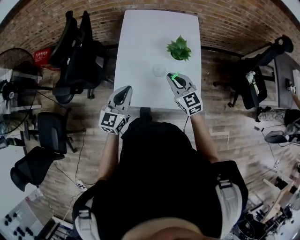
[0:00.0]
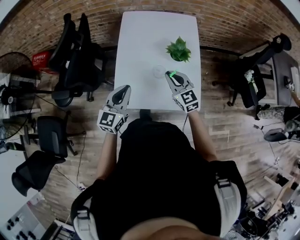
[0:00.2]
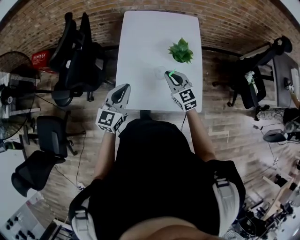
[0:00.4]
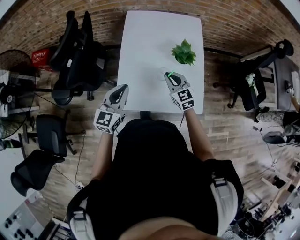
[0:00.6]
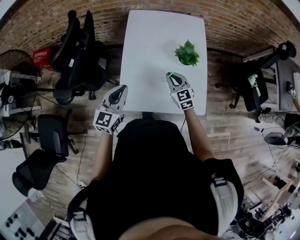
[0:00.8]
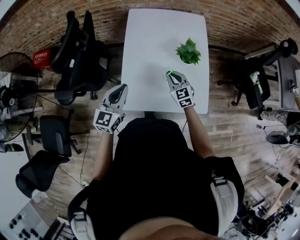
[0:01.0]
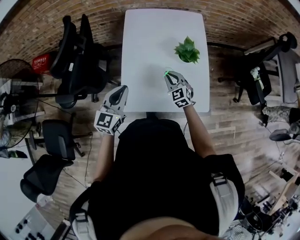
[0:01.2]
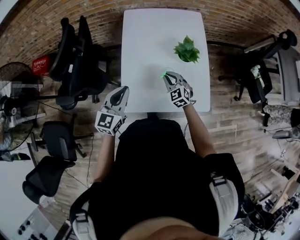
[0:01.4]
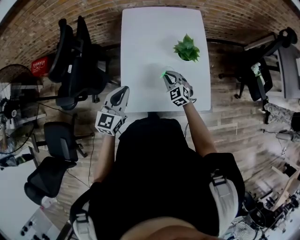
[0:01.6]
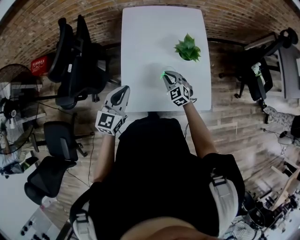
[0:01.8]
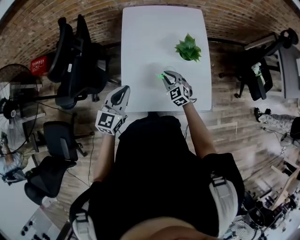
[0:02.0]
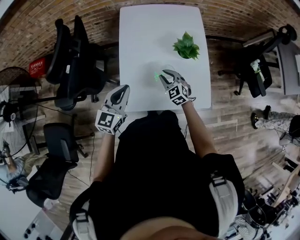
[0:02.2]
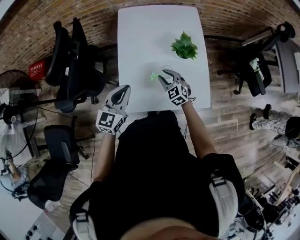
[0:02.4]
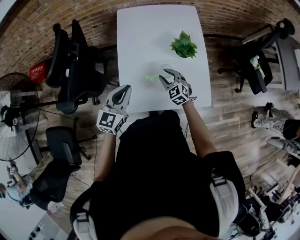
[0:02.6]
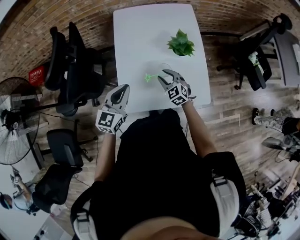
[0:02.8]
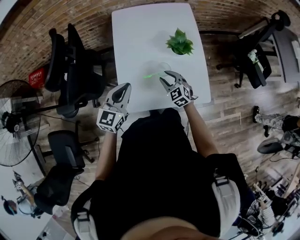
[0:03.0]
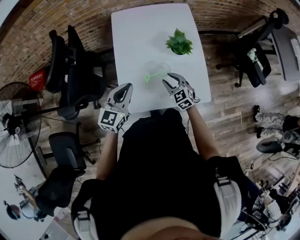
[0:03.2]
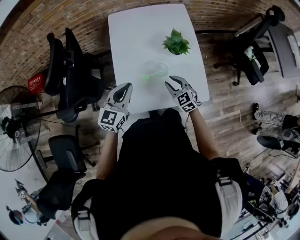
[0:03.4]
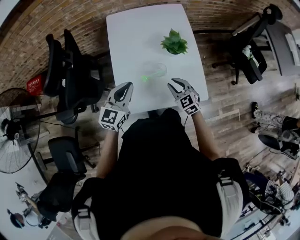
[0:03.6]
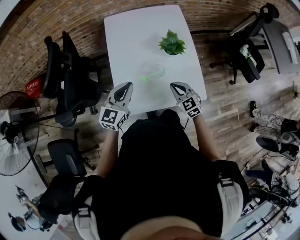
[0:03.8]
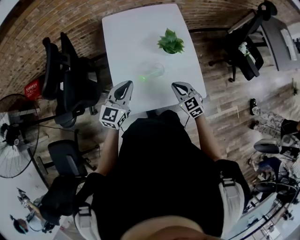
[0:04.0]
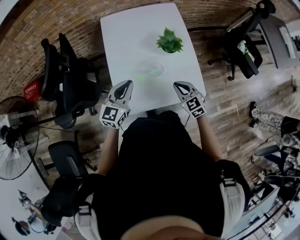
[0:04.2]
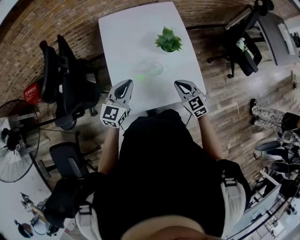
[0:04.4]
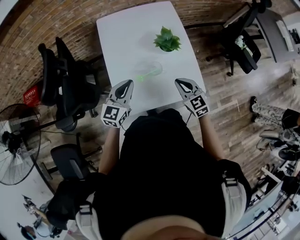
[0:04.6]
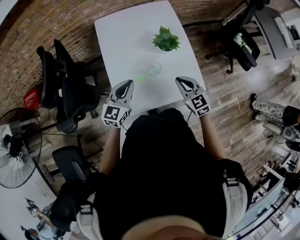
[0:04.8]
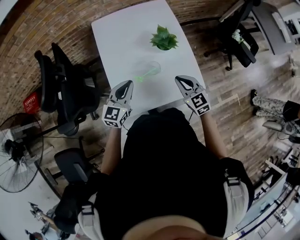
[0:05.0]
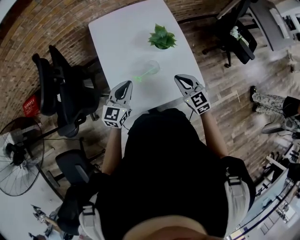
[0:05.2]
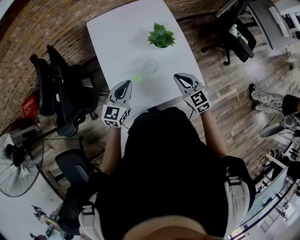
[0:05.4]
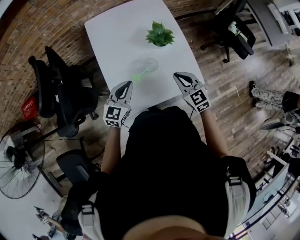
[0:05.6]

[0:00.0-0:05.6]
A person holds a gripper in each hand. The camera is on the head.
0:00.0 to 0:01.4: The left gripper shifts roughly 10 cm to the left and forward; the right gripper shifts approximately 15 cm downward, forward and to the left.
0:01.4 to 0:02.8: The right gripper opens.
0:02.8 to 0:04.2: The right gripper is displaced to the right, backward and upward by about 15 cm, and closes up.
0:04.2 to 0:05.6: The left gripper ends up approximately 5 cm from where it was.

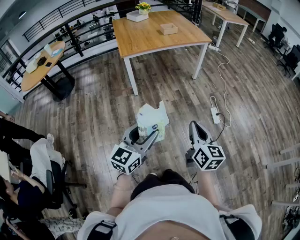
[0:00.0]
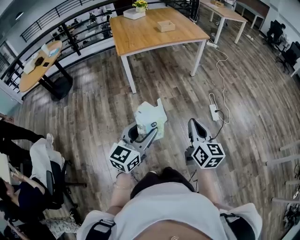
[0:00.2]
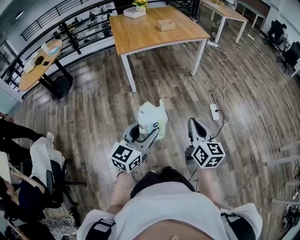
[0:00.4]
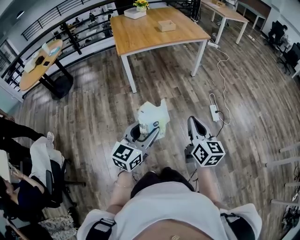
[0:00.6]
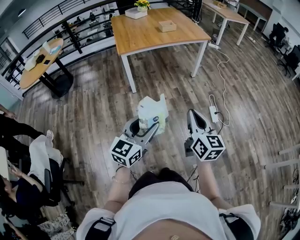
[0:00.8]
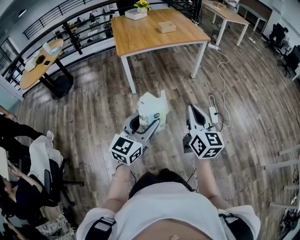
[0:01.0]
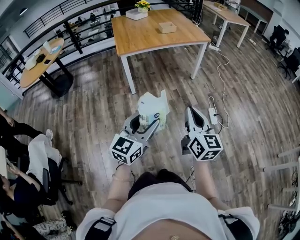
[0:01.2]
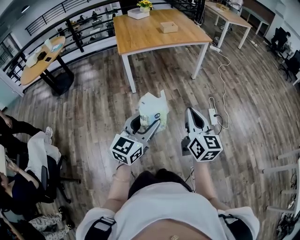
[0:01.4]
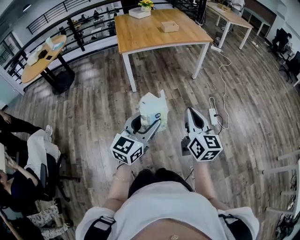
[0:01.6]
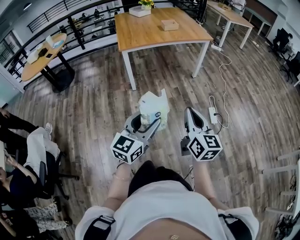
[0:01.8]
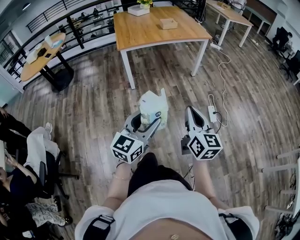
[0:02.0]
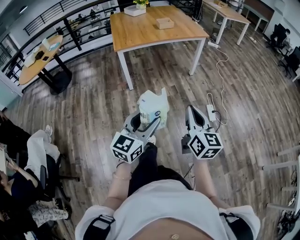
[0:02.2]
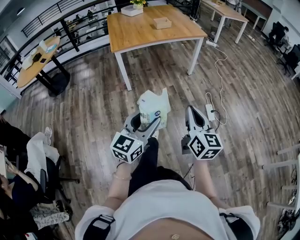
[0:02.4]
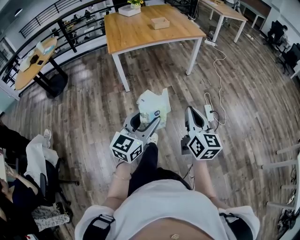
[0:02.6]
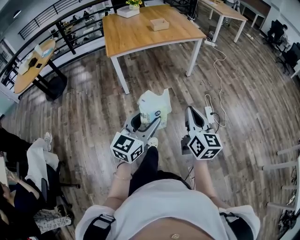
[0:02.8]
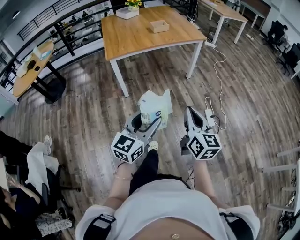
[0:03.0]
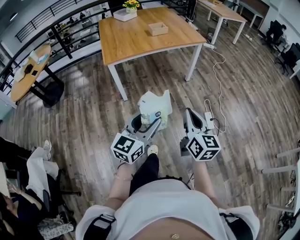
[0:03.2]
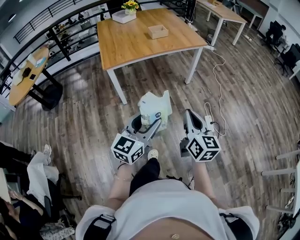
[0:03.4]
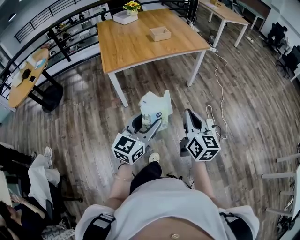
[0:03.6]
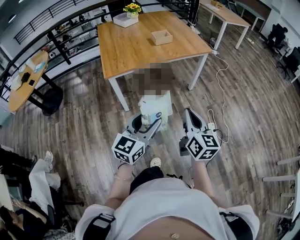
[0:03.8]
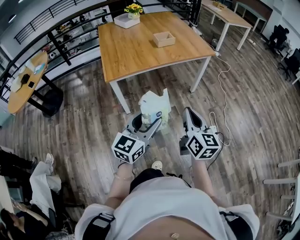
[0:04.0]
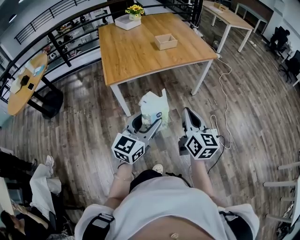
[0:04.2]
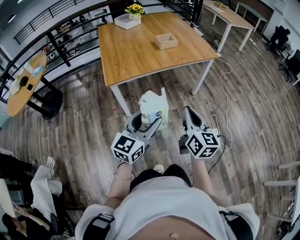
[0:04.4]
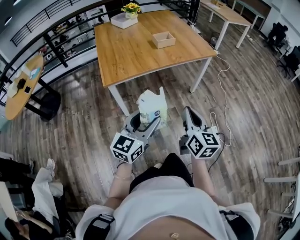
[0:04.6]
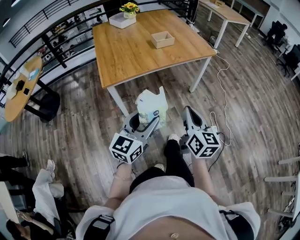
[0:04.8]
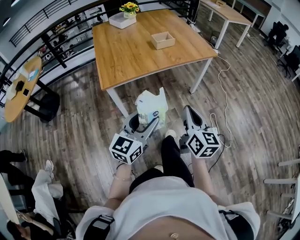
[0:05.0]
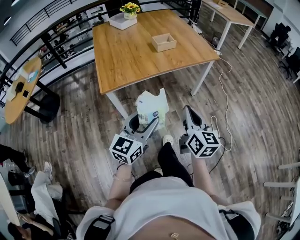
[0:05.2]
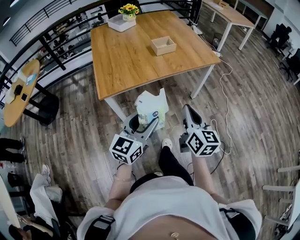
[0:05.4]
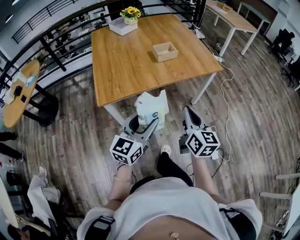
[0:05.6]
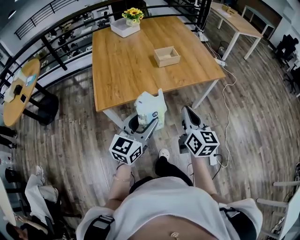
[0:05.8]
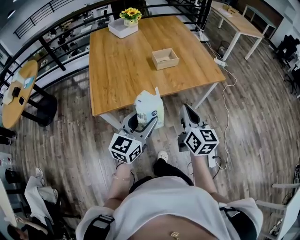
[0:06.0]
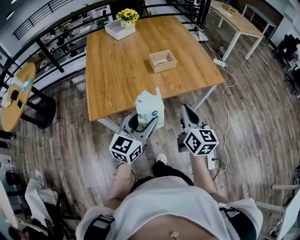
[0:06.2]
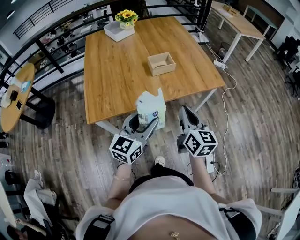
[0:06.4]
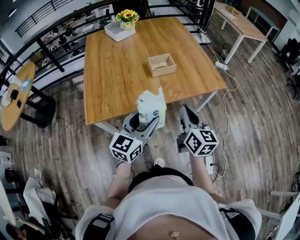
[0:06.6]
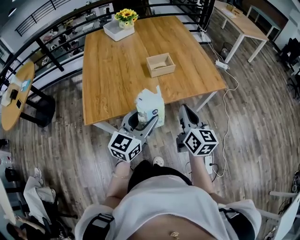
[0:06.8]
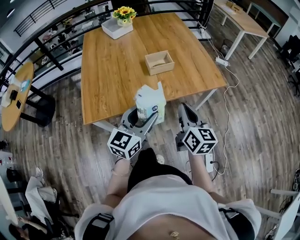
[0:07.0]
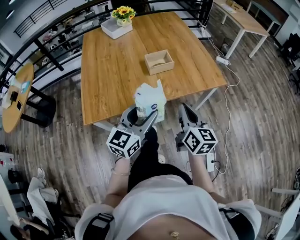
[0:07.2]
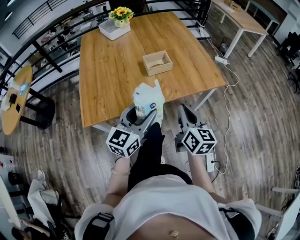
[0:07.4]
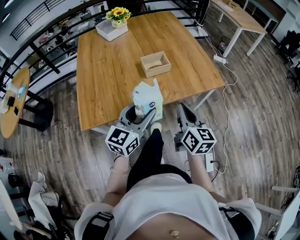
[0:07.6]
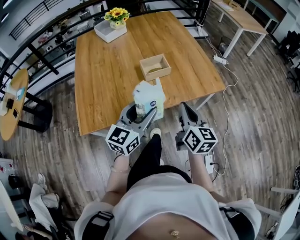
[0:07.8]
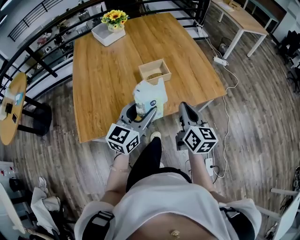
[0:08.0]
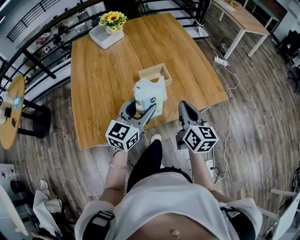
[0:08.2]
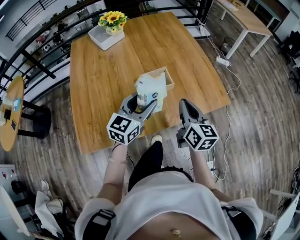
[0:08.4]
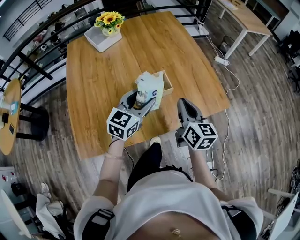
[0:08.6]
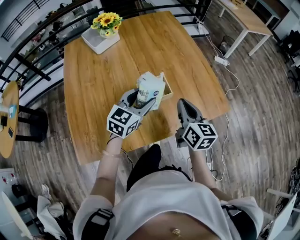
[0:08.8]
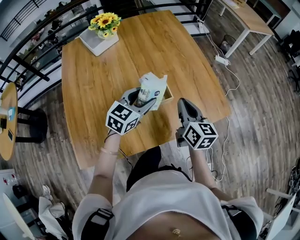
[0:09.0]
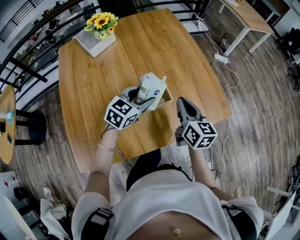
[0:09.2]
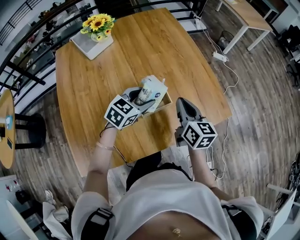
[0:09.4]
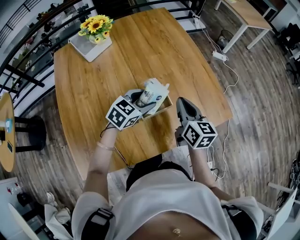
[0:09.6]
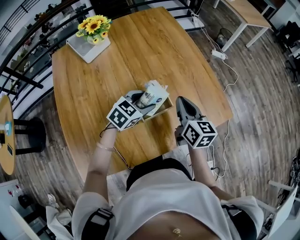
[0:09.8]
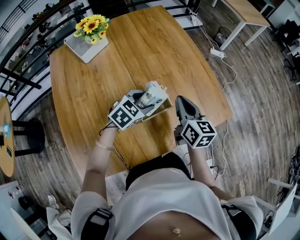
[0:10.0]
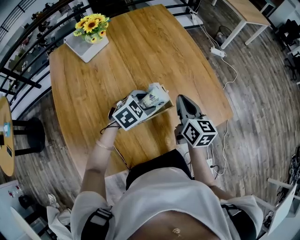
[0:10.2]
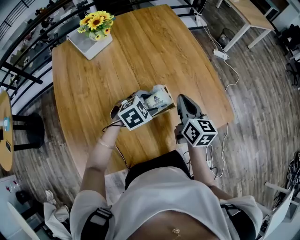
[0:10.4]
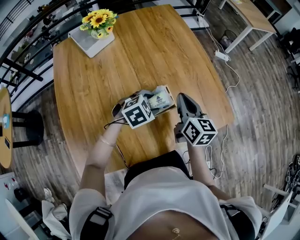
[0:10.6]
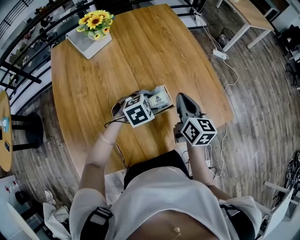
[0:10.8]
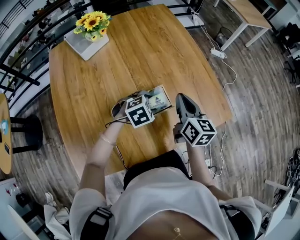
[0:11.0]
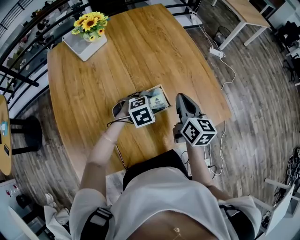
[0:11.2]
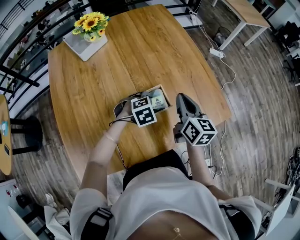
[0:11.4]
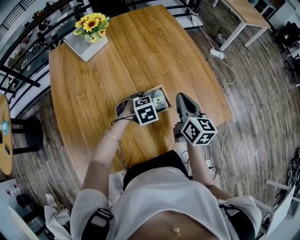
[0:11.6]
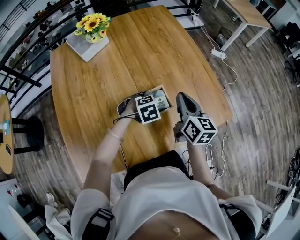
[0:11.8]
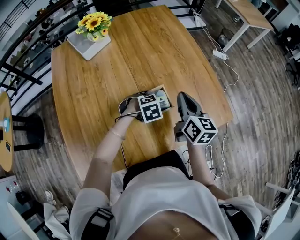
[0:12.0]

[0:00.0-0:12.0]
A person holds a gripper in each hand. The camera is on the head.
0:00.0 to 0:01.6: The right gripper changes place by roughly 5 cm; the left gripper ends up about 5 cm from where it was.
0:01.6 to 0:03.0: The grippers both shift forward by approximately 10 cm.
0:03.0 to 0:04.4: Both grippers travel together forward and to the left, about 25 cm.
0:04.4 to 0:06.0: The two grippers go some 25 cm forward.
0:06.0 to 0:07.6: Both grippers move forward, roughly 15 cm.
0:07.6 to 0:09.0: The two grippers go roughly 25 cm forward. The left gripper turns by approximately 20 degrees.
0:09.0 to 0:10.4: The left gripper moves downward, roughly 10 cm, and tips its fingers downward by roughly 30 degrees. The right gripper shifts approximately 5 cm forward.
0:10.4 to 0:12.0: The left gripper is displaced downward by some 10 cm, and turns by approximately 20 degrees.

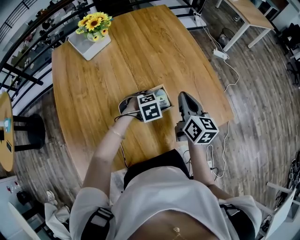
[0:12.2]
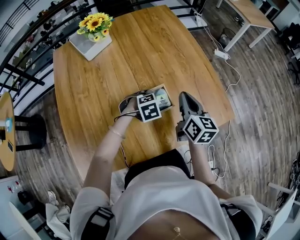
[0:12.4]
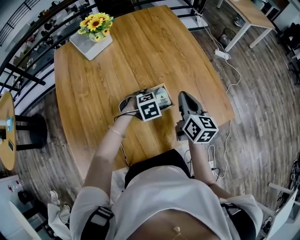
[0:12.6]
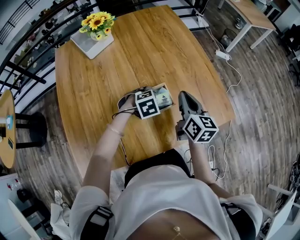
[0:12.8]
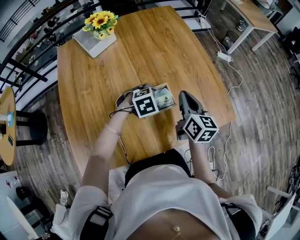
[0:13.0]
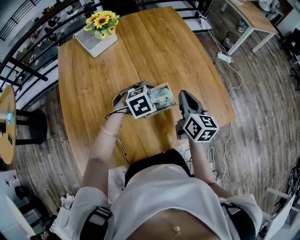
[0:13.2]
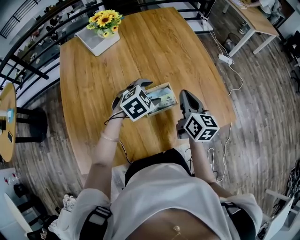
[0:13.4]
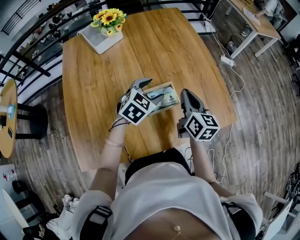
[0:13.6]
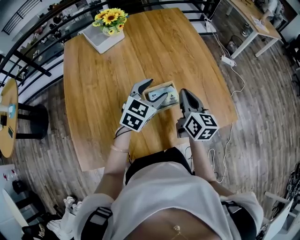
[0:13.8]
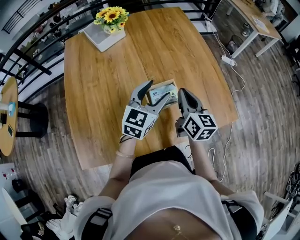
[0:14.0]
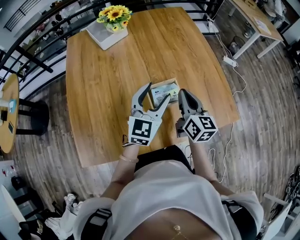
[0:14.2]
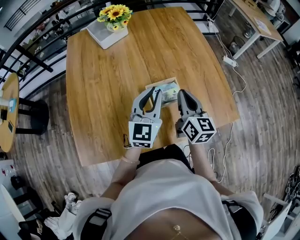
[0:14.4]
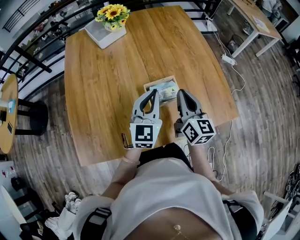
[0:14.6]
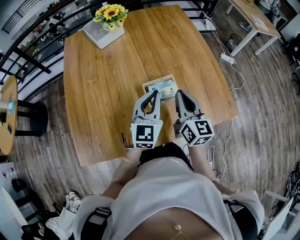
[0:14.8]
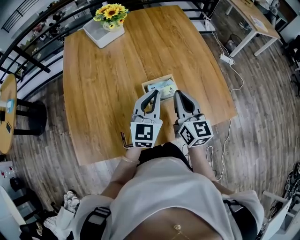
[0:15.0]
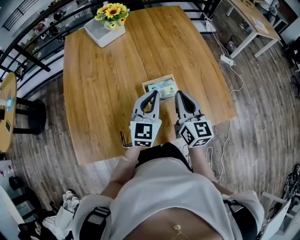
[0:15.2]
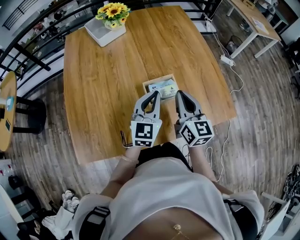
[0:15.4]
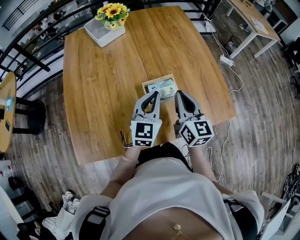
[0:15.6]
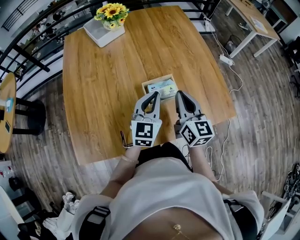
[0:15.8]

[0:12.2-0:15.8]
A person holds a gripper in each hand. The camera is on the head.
0:12.2 to 0:14.0: The right gripper moves about 5 cm. Meanwhile the left gripper goes approximately 20 cm upward, and tilts its fingers some 60 degrees upward.
0:14.0 to 0:15.8: The left gripper closes.

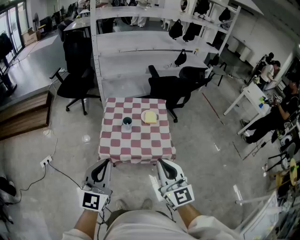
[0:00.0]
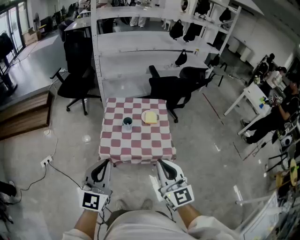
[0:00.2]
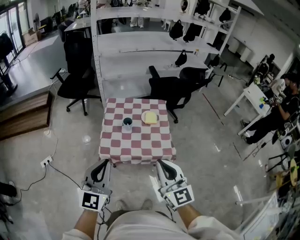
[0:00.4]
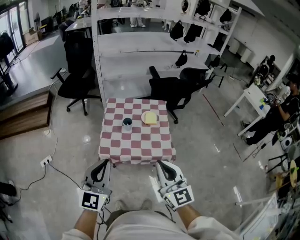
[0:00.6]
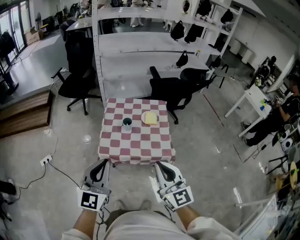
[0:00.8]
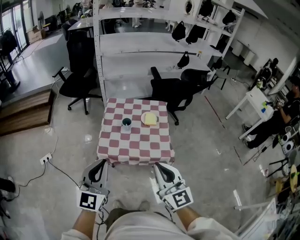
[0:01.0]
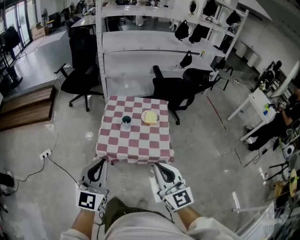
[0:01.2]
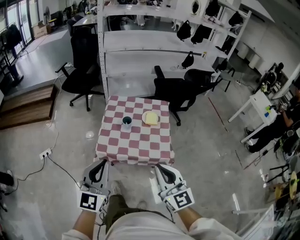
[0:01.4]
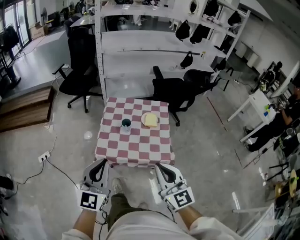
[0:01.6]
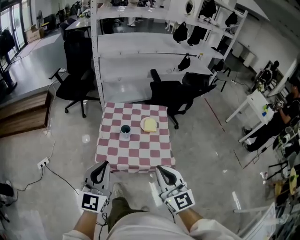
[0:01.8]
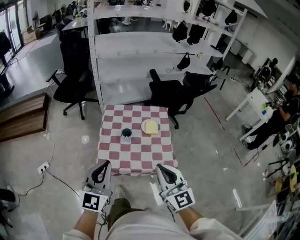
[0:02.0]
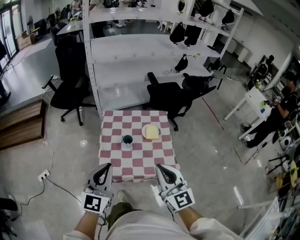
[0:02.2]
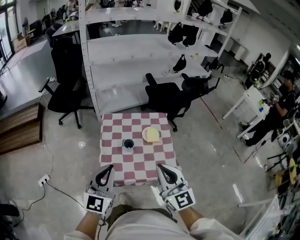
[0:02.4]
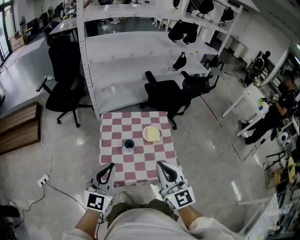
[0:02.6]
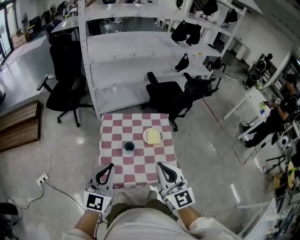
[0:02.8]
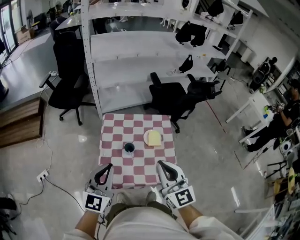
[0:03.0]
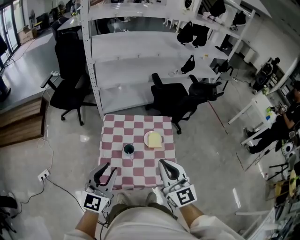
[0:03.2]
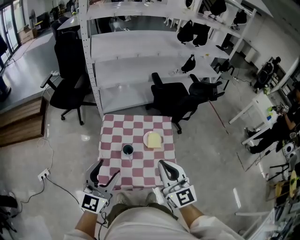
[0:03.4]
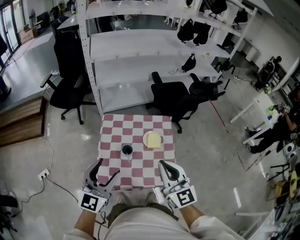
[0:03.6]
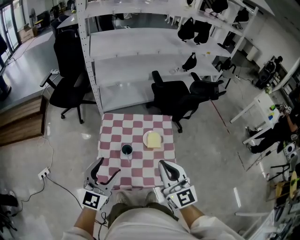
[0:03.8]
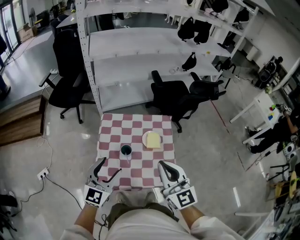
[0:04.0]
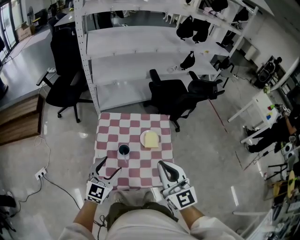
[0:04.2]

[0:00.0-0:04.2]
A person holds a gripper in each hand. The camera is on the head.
0:00.0 to 0:01.4: The grippers make only small movements.
0:01.4 to 0:02.8: The two grippers go roughly 20 cm forward.
0:02.8 to 0:04.2: The left gripper heads downward, forward and to the right, covering about 15 cm, and opens, while the right gripper heads forward and to the right, covering approximately 10 cm.
